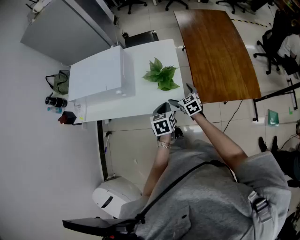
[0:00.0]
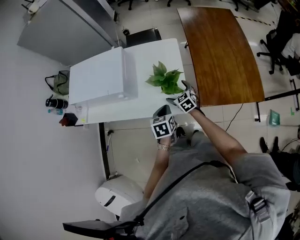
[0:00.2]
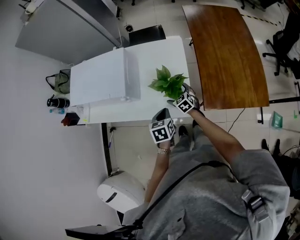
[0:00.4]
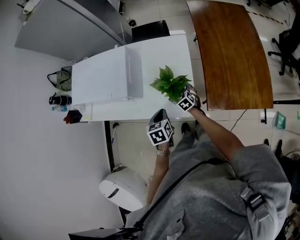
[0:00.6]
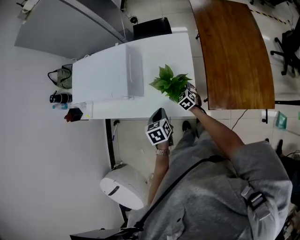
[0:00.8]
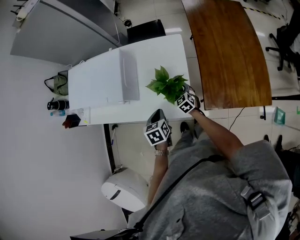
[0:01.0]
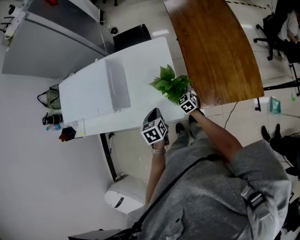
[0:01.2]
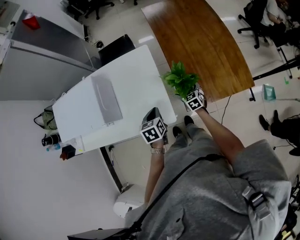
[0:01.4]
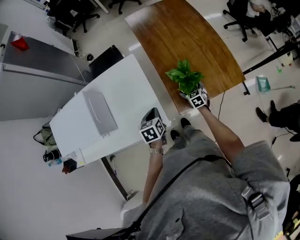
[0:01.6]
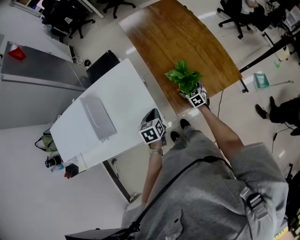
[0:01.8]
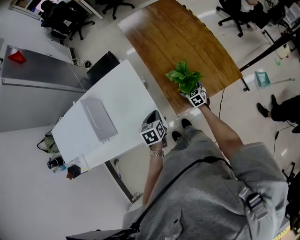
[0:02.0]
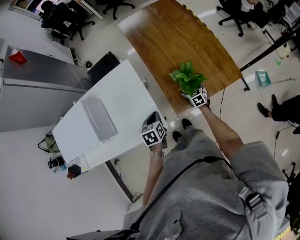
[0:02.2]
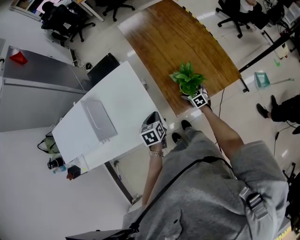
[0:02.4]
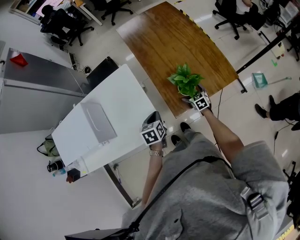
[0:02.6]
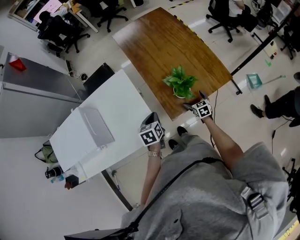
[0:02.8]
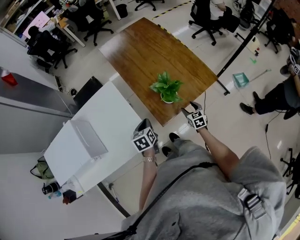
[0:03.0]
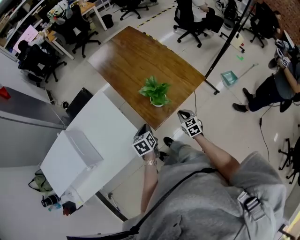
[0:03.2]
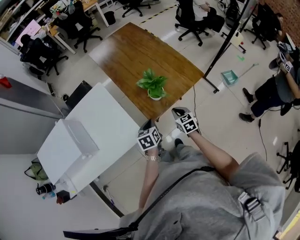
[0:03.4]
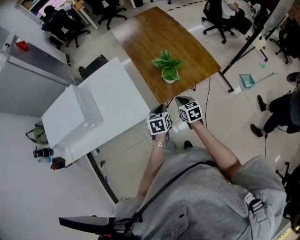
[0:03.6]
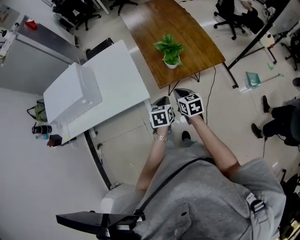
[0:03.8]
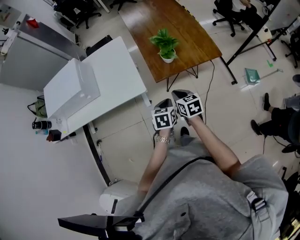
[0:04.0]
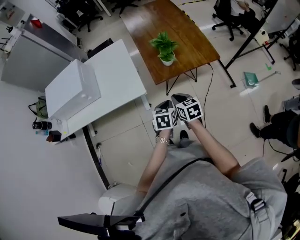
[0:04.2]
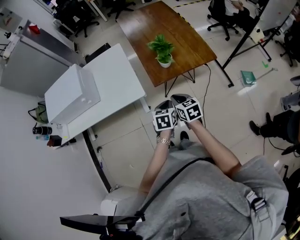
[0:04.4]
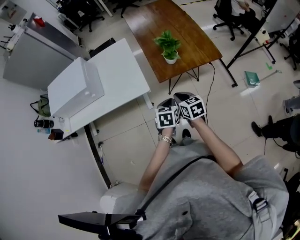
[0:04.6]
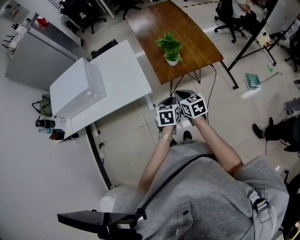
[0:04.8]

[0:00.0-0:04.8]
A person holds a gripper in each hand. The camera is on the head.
0:00.0 to 0:01.6: The right gripper changes place by some 30 cm, and changes its angle by roughly 20 degrees. Meanwhile the left gripper ends up some 15 cm from where it was.
0:01.6 to 0:03.2: The left gripper heads to the right, covering about 10 cm; the right gripper is displaced backward, to the right and upward by some 20 cm, and closes up.
0:03.2 to 0:04.8: The right gripper is displaced backward, upward and to the left by approximately 25 cm, and changes its angle by roughly 20 degrees. The left gripper heads backward, covering about 25 cm.

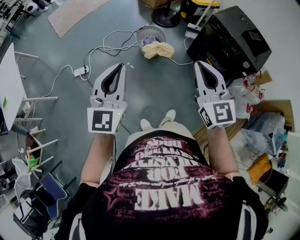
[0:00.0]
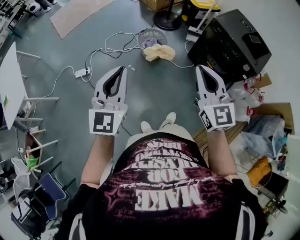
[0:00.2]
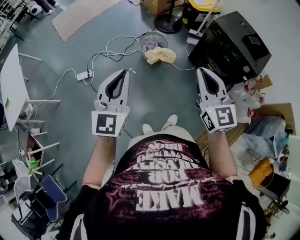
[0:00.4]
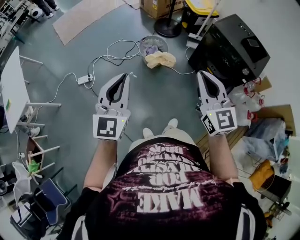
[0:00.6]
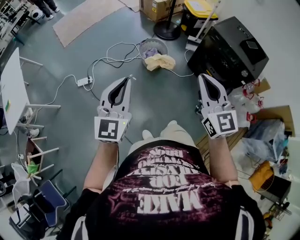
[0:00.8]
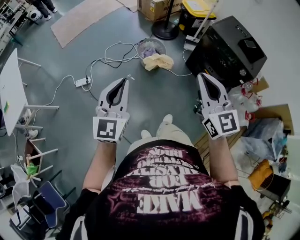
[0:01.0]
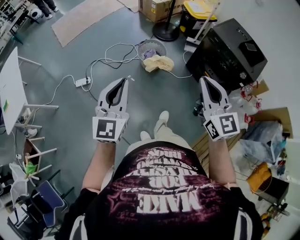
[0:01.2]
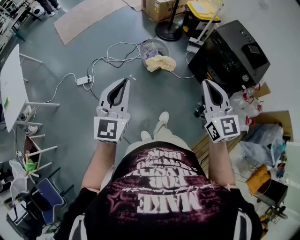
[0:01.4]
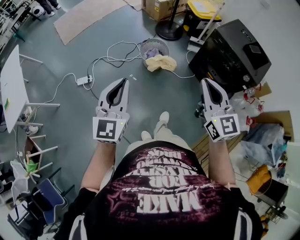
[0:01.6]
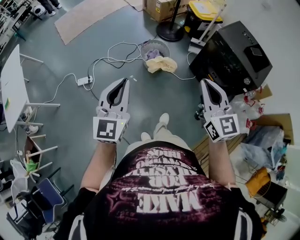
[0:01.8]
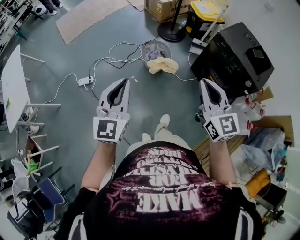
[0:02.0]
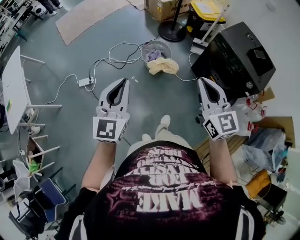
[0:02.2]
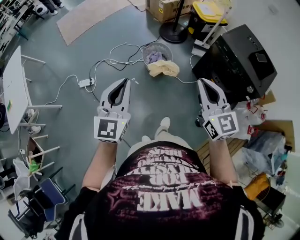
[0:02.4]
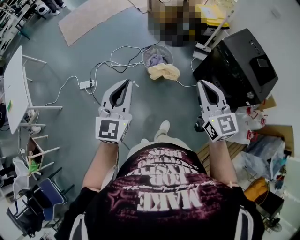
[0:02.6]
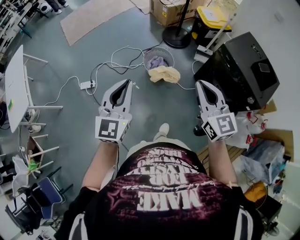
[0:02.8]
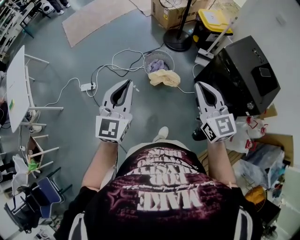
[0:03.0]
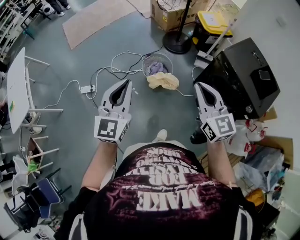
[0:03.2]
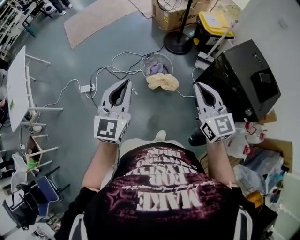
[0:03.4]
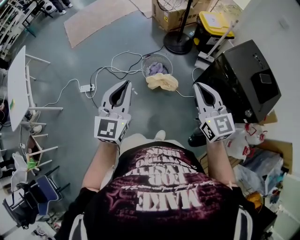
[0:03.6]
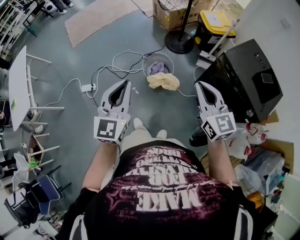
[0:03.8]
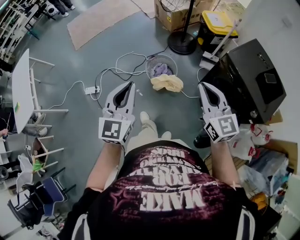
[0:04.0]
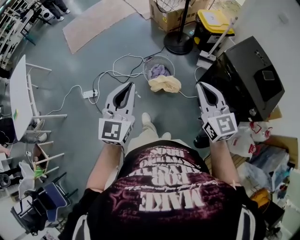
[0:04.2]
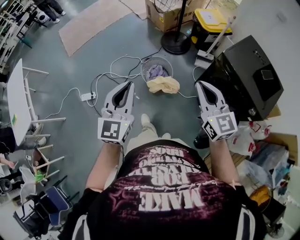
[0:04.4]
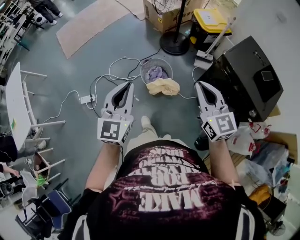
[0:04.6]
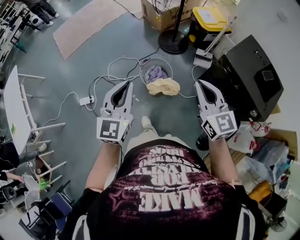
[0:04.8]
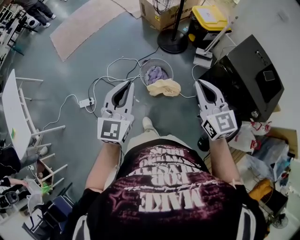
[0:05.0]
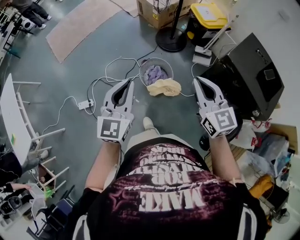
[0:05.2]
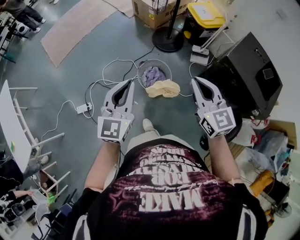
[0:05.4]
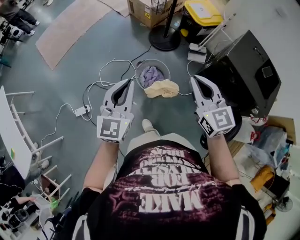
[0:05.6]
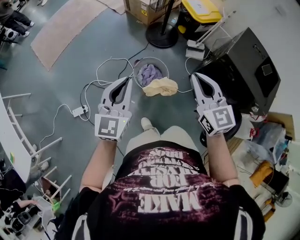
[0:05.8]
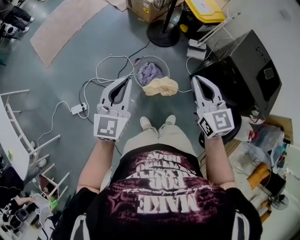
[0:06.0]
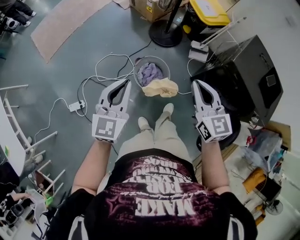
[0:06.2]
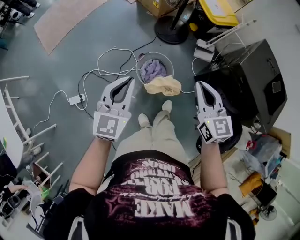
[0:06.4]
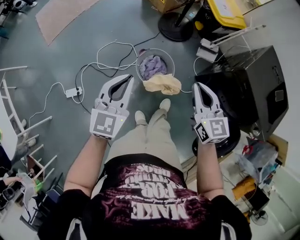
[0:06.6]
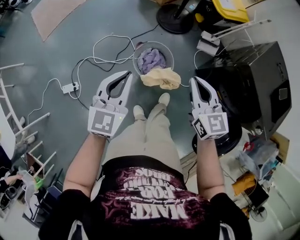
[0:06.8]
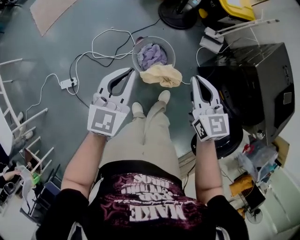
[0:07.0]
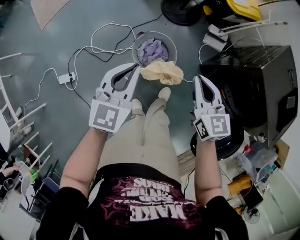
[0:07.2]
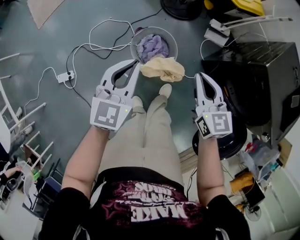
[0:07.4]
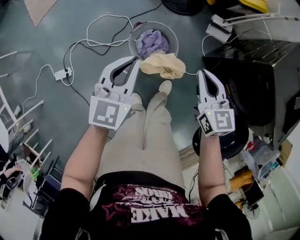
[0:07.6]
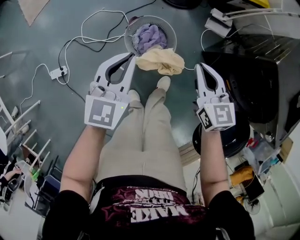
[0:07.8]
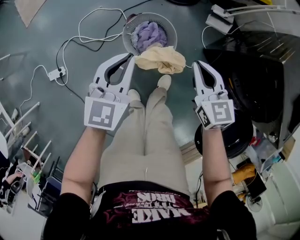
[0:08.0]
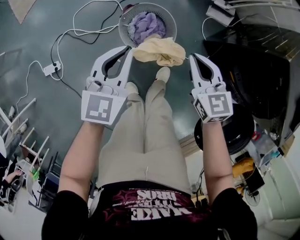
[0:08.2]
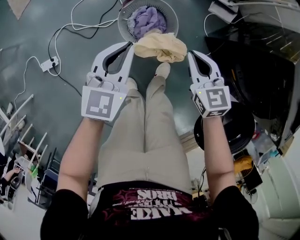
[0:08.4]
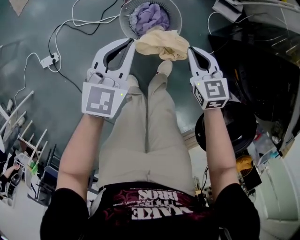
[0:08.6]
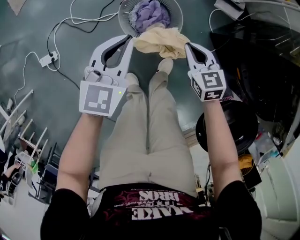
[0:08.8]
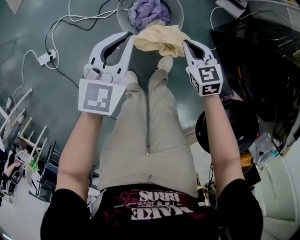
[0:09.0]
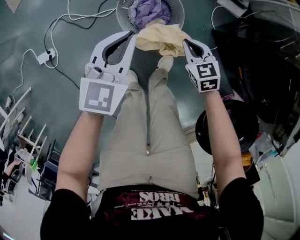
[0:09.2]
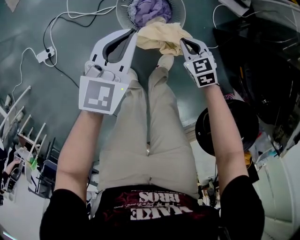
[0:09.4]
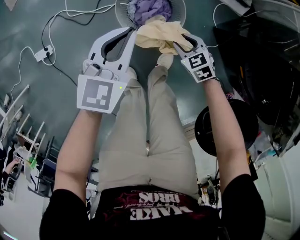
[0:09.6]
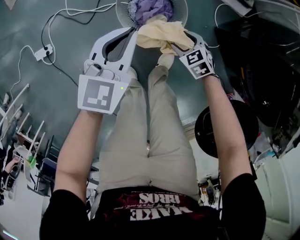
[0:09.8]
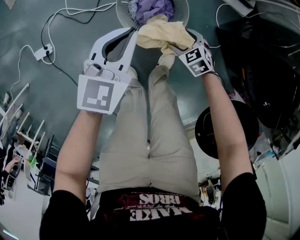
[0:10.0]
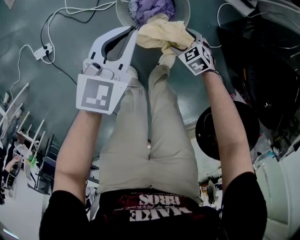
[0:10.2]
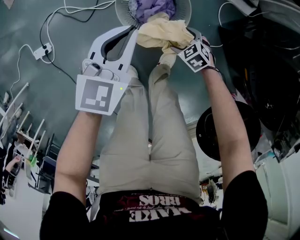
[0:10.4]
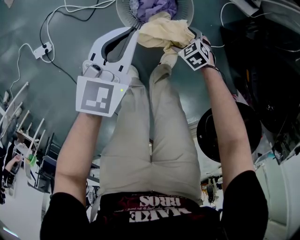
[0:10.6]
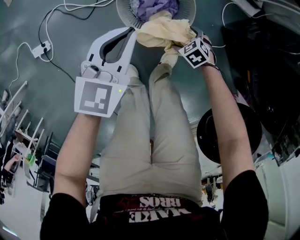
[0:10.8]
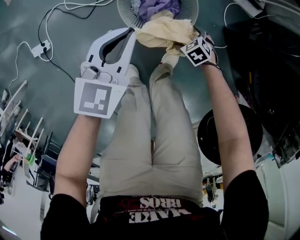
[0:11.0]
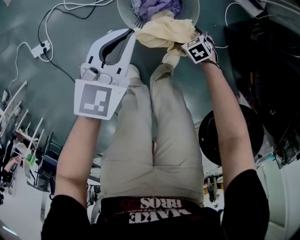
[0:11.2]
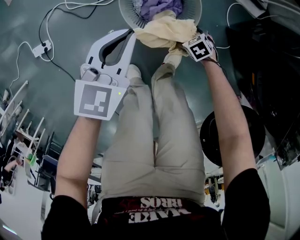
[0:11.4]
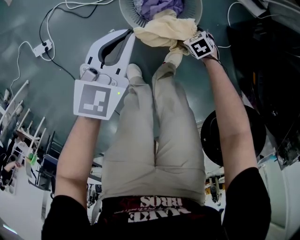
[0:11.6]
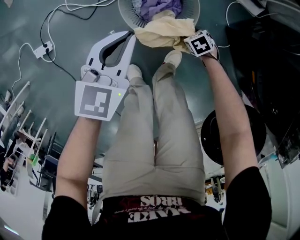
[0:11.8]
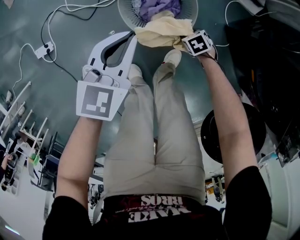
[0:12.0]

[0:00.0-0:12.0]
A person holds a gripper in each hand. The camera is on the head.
0:00.0 to 0:01.6: There are only small adjustments of the grippers.
0:01.6 to 0:03.0: The right gripper heads forward, covering approximately 15 cm, while the left gripper shifts approximately 15 cm forward and to the right.
0:03.0 to 0:04.4: The two grippers go approximately 10 cm forward.
0:04.4 to 0:06.0: Both grippers travel together forward and to the left, some 20 cm.
0:06.0 to 0:07.6: Both grippers move downward, some 25 cm.
0:07.6 to 0:09.0: The left gripper moves downward, approximately 15 cm; the right gripper shifts roughly 25 cm downward, and swivels some 20 degrees.
0:09.0 to 0:10.4: The right gripper heads downward, covering approximately 20 cm, swivels roughly 30 degrees, and opens its fingers. Meanwhile the left gripper heads downward, covering approximately 5 cm.
0:10.4 to 0:12.0: The right gripper shifts about 5 cm downward, changes its angle by roughly 20 degrees, and closes.

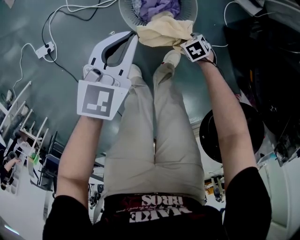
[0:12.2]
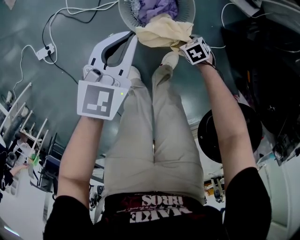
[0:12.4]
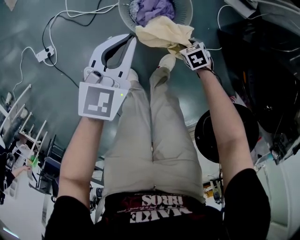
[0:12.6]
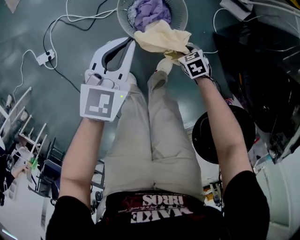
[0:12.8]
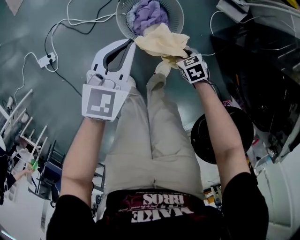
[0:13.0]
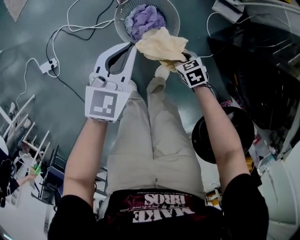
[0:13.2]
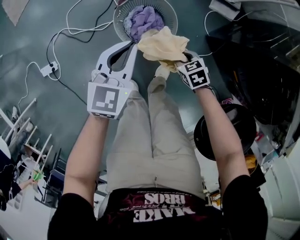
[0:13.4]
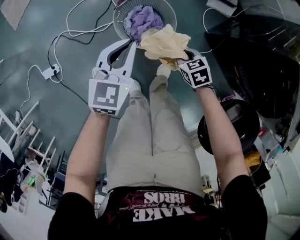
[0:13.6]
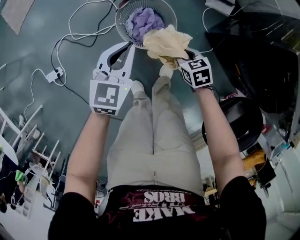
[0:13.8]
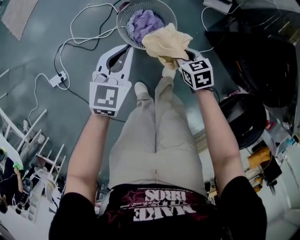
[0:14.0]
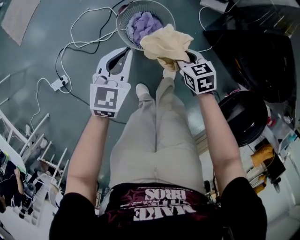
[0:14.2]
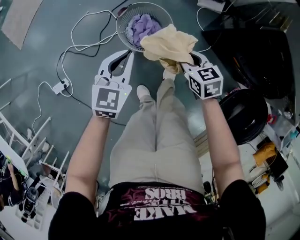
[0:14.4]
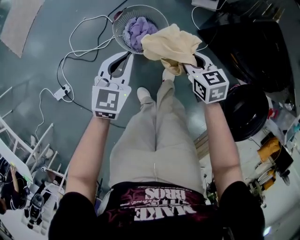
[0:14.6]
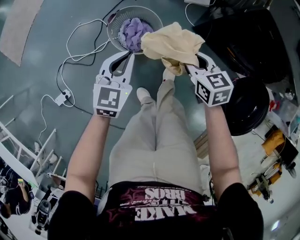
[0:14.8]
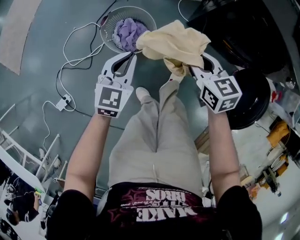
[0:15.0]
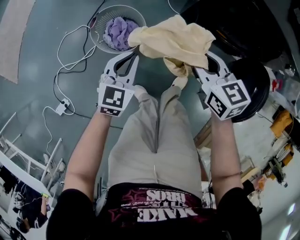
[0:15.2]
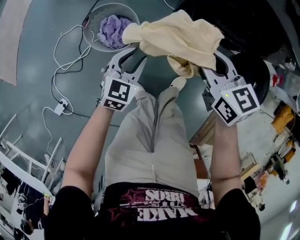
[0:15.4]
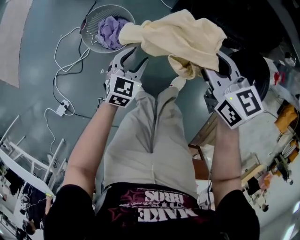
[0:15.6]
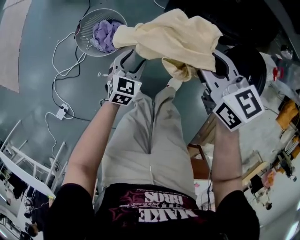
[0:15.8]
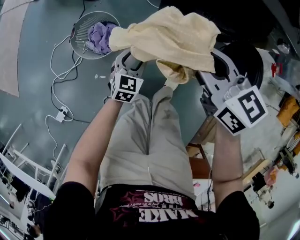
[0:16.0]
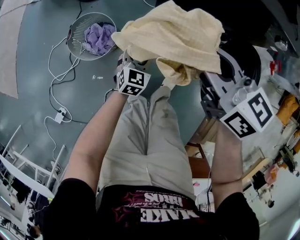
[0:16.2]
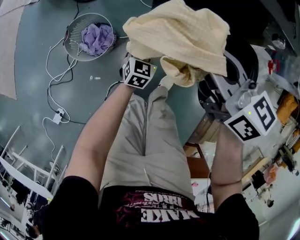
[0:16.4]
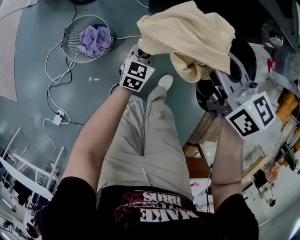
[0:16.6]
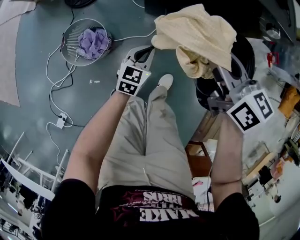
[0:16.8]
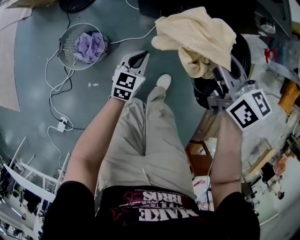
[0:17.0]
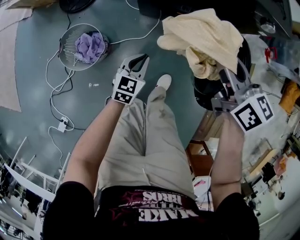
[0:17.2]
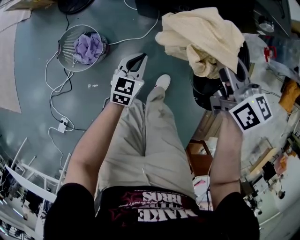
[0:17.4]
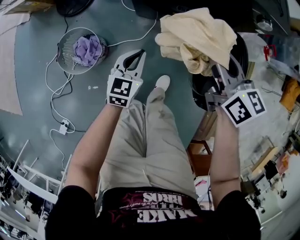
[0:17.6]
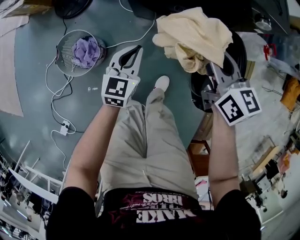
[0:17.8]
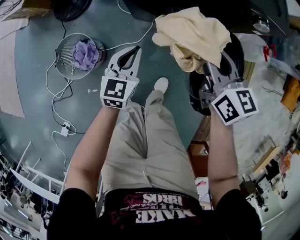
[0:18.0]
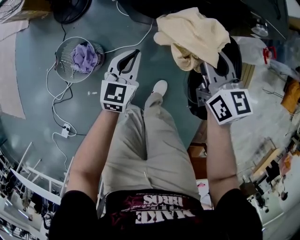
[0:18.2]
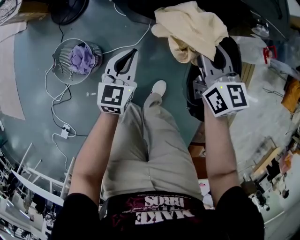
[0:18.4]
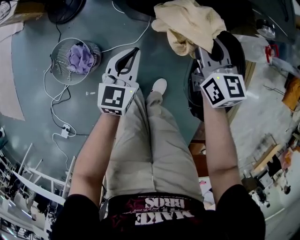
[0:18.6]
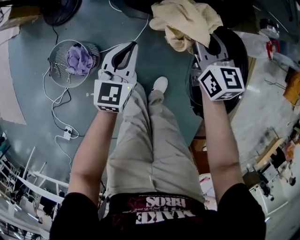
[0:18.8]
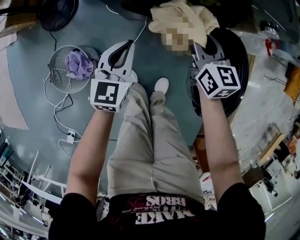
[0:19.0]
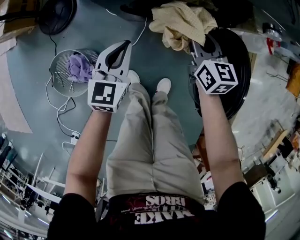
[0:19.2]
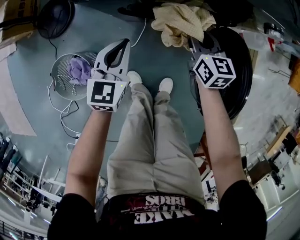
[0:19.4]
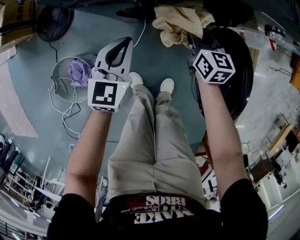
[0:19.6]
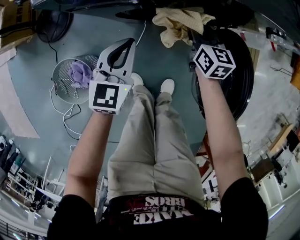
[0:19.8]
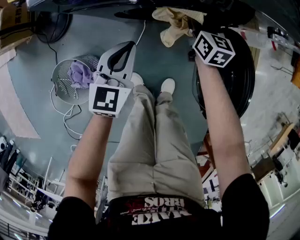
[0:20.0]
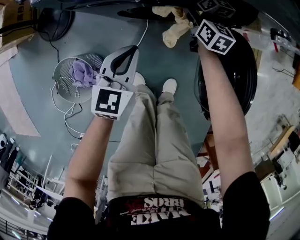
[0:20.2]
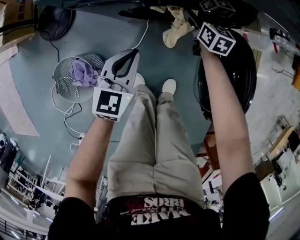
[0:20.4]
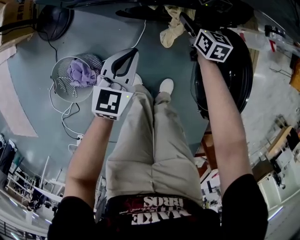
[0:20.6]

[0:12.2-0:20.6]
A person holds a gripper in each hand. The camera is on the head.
0:12.2 to 0:13.6: The left gripper travels upward by some 5 cm, while the right gripper goes about 20 cm upward, and rotates roughly 30 degrees.
0:13.6 to 0:15.0: The right gripper goes some 20 cm upward, and rotates some 40 degrees. Meanwhile the left gripper changes place by roughly 10 cm, and rotates about 20 degrees.
0:15.0 to 0:16.4: The left gripper travels to the right and downward by some 35 cm, and opens, then closes again. The right gripper is displaced to the right and upward by roughly 25 cm, and swivels about 20 degrees.
0:16.4 to 0:17.8: The right gripper shifts some 15 cm to the right and downward, and rotates about 20 degrees. The left gripper heads upward, covering about 10 cm.
0:17.8 to 0:19.2: The right gripper goes about 20 cm downward and forward; the left gripper moves forward, about 10 cm.
0:19.2 to 0:20.6: The right gripper travels downward and forward by some 15 cm, and opens its fingers.
